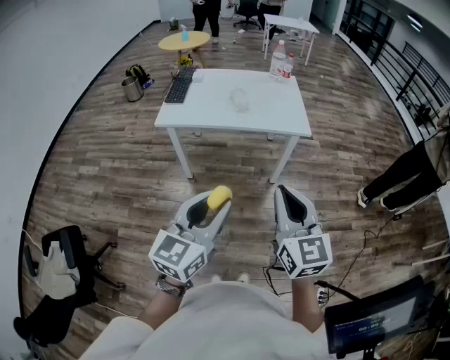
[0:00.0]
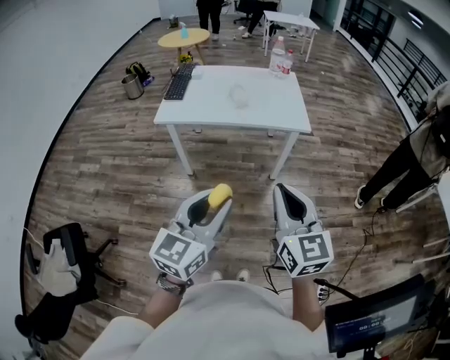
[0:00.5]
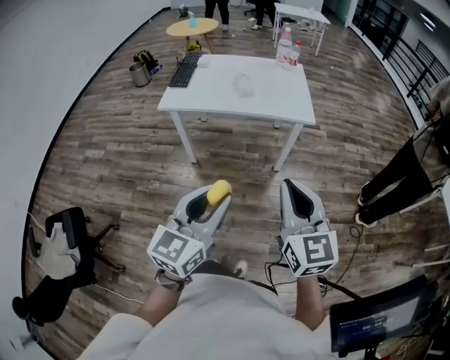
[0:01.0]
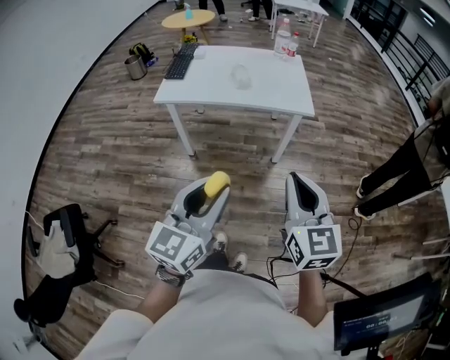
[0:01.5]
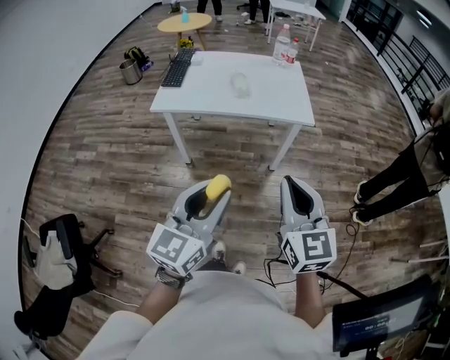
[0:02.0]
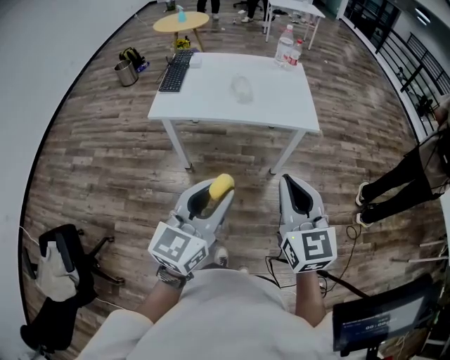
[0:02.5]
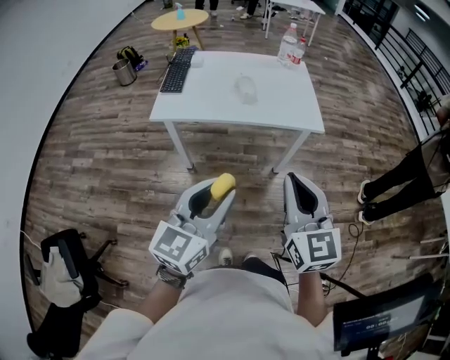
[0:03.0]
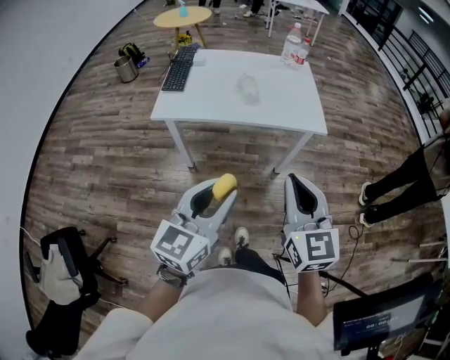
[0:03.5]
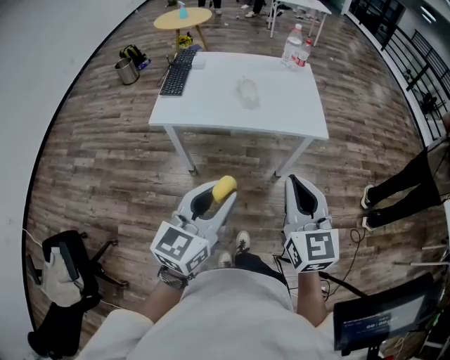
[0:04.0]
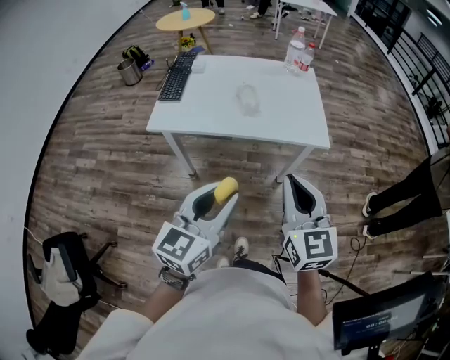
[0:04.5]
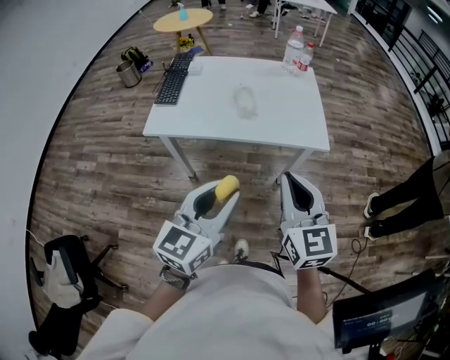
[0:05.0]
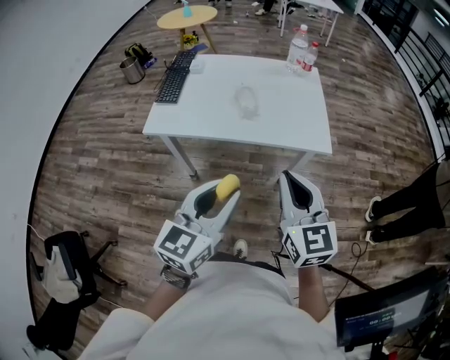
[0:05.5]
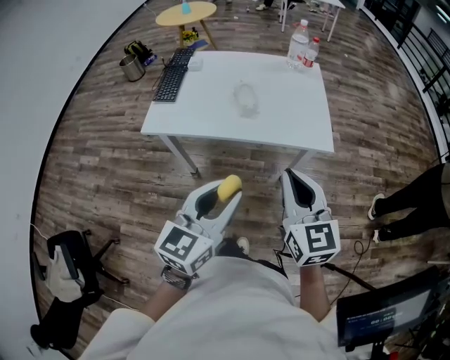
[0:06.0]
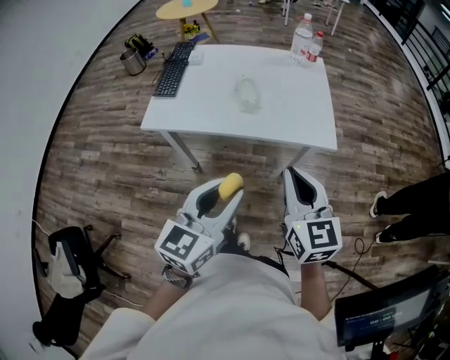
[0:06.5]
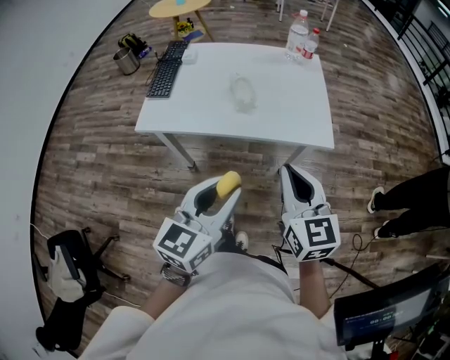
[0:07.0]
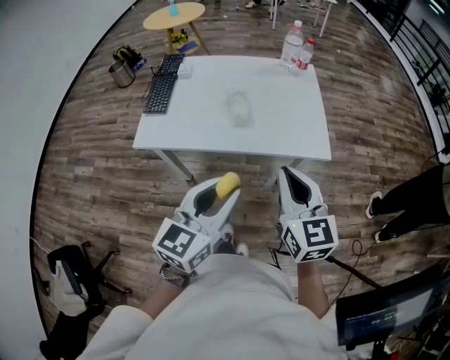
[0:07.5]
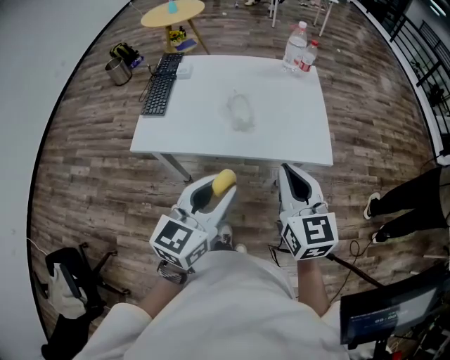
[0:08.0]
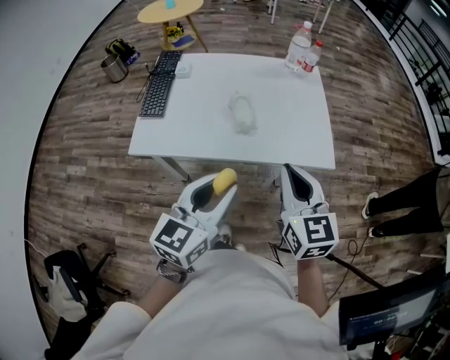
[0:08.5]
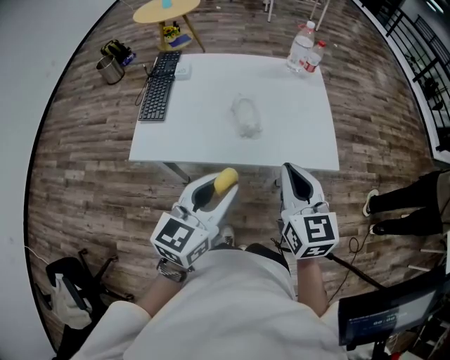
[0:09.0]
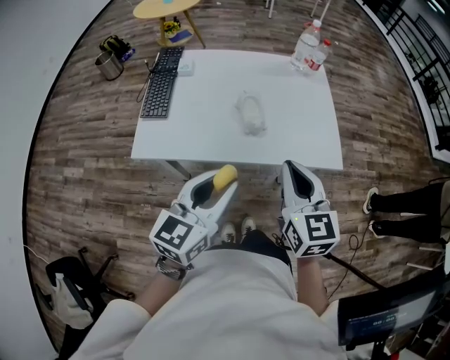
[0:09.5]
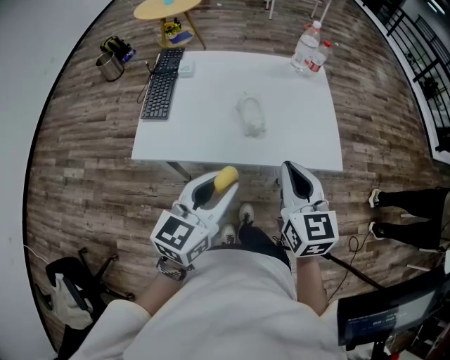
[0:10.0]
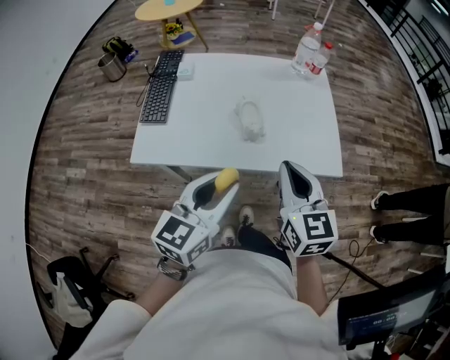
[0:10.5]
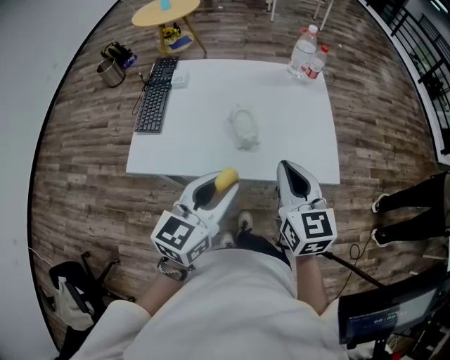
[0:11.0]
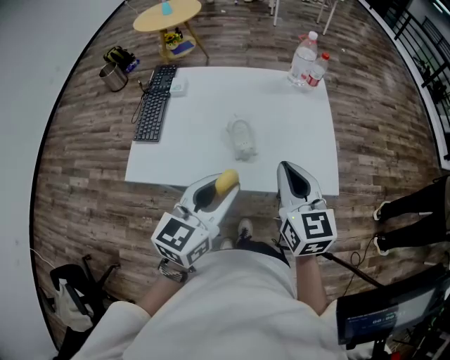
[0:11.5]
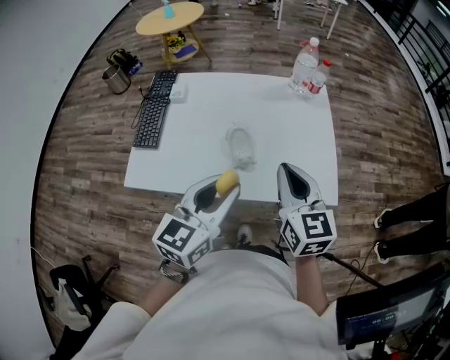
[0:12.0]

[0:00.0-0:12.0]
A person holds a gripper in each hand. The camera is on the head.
0:00.0 to 0:02.0: The grippers stay close to where they were, moving slightly.
0:02.0 to 0:04.0: Both grippers travel together forward, about 10 cm.
0:04.0 to 0:06.0: Both grippers move forward, roughly 10 cm.
0:06.0 to 0:08.0: The two grippers go some 10 cm forward.
0:08.0 to 0:10.0: The right gripper shifts by roughly 5 cm, while the left gripper travels to the left by some 5 cm.
0:10.0 to 0:12.0: Both grippers move forward, about 10 cm.

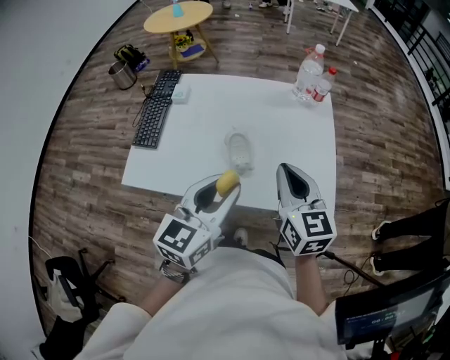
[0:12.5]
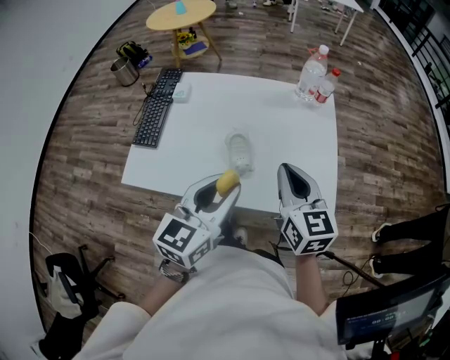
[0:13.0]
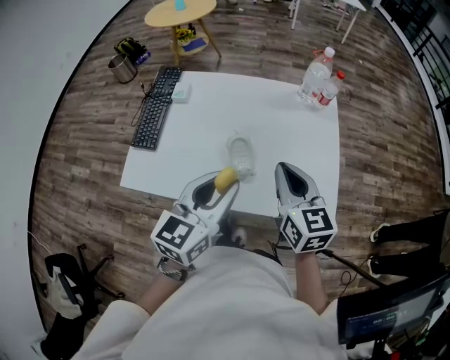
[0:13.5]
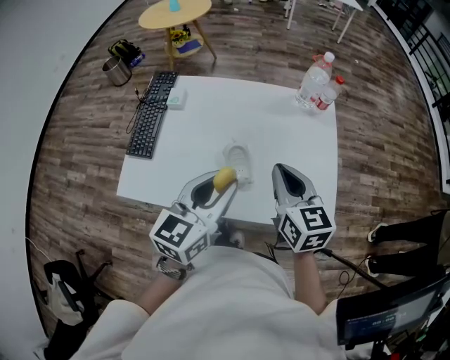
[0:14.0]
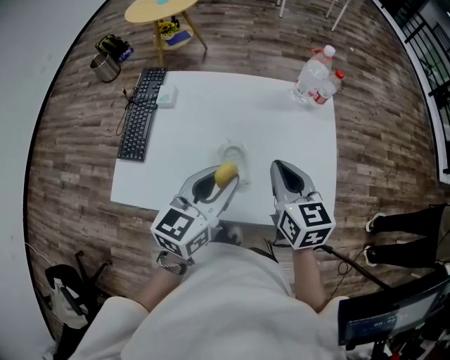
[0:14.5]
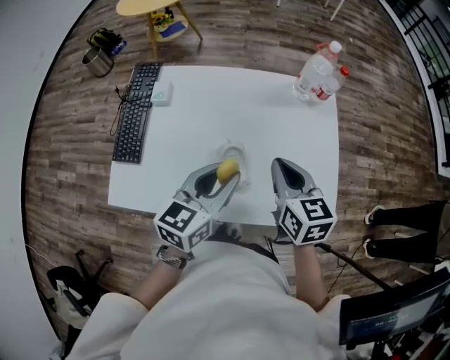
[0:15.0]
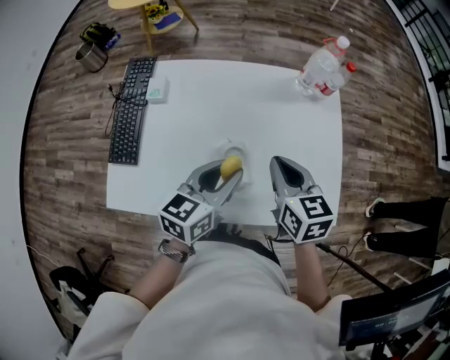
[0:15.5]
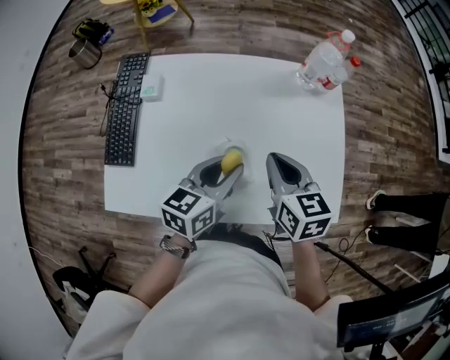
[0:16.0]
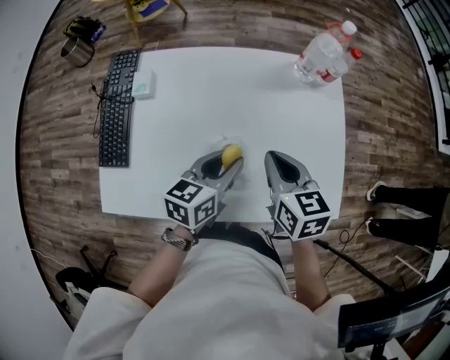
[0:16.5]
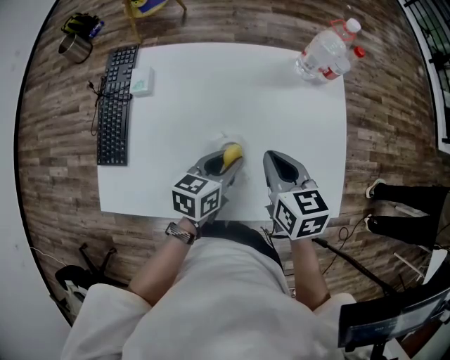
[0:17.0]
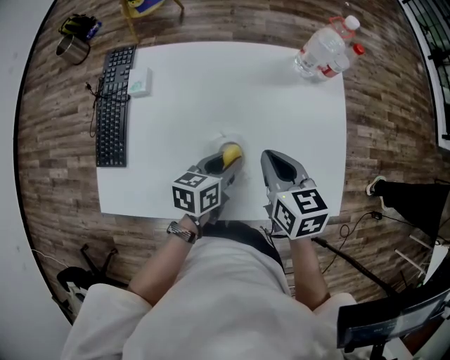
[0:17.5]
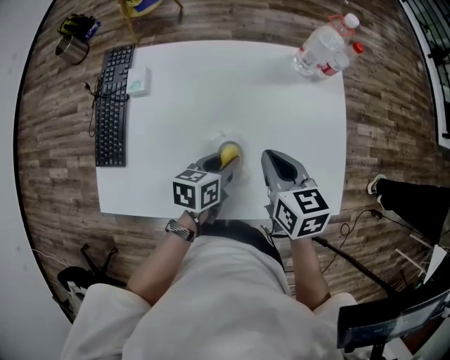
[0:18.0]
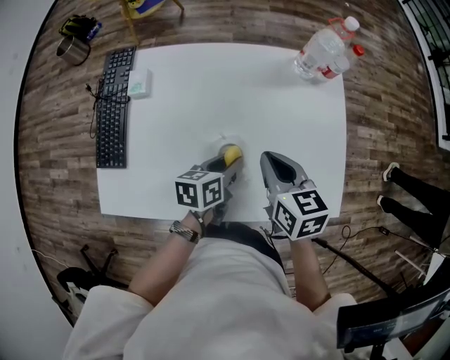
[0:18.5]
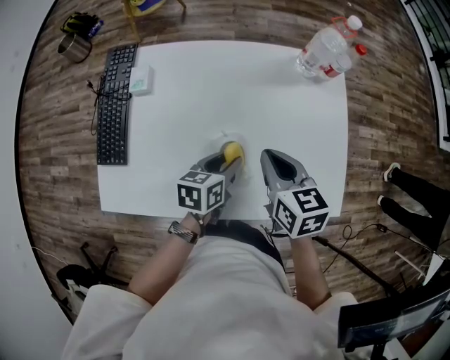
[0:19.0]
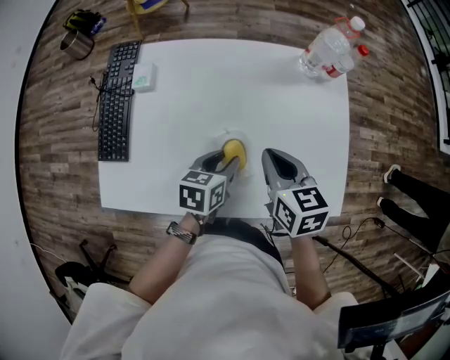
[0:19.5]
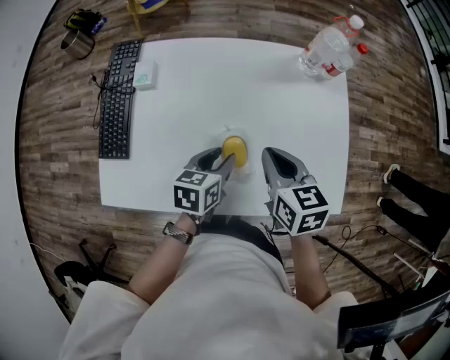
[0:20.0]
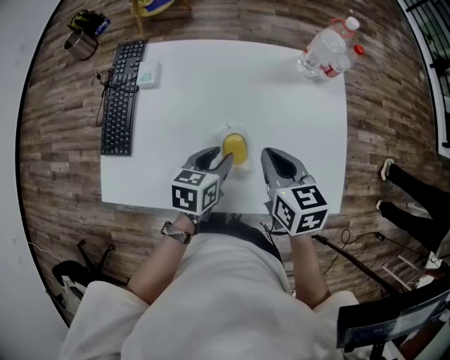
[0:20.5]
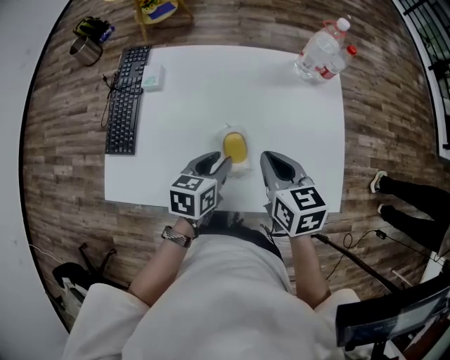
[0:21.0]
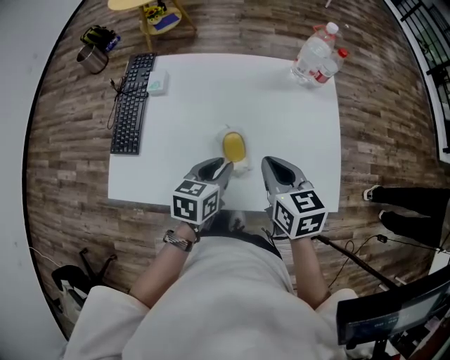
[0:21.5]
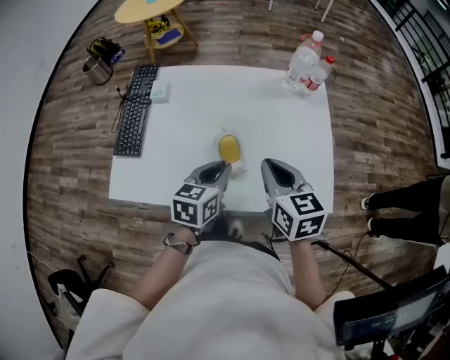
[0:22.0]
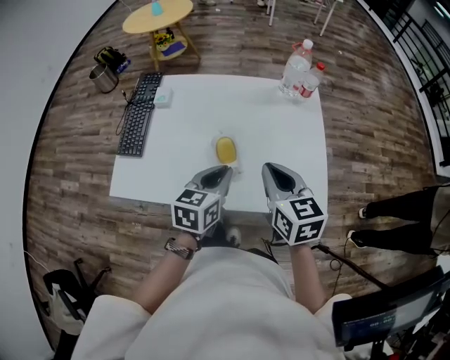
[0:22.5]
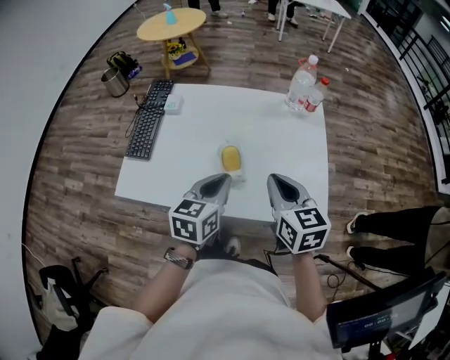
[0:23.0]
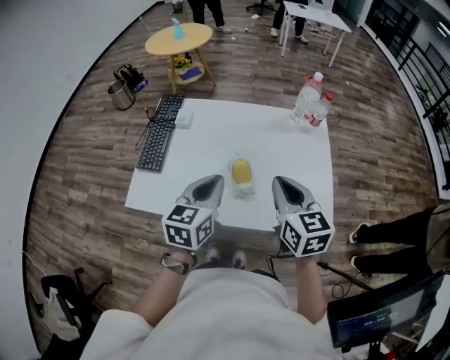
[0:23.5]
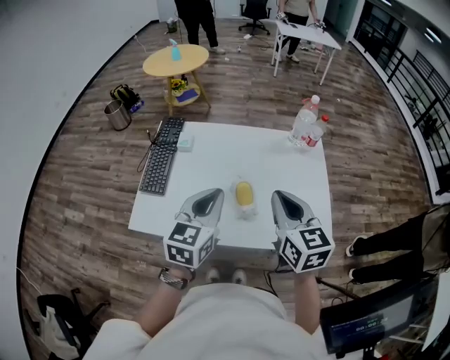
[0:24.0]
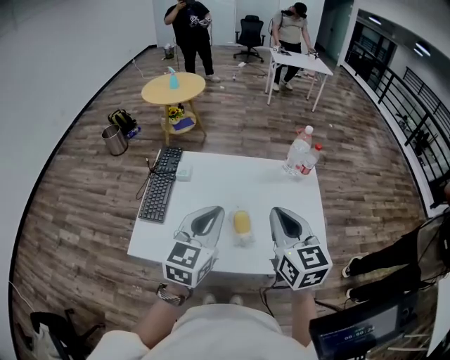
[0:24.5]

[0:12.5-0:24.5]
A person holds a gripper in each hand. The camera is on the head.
0:12.5 to 0:14.5: Both grippers move forward, approximately 10 cm.
0:14.5 to 0:16.5: The right gripper travels downward by roughly 5 cm. The left gripper travels downward and forward by approximately 15 cm, and swivels roughly 20 degrees.
0:16.5 to 0:18.5: The left gripper goes roughly 5 cm downward, and rotates roughly 20 degrees.
0:18.5 to 0:20.5: The grippers move only a little.
0:20.5 to 0:22.5: The two grippers go some 10 cm upward and backward. The left gripper closes its fingers.
0:22.5 to 0:24.5: The left gripper moves upward and to the left, about 15 cm, and rotates some 30 degrees; the right gripper shifts roughly 10 cm upward.

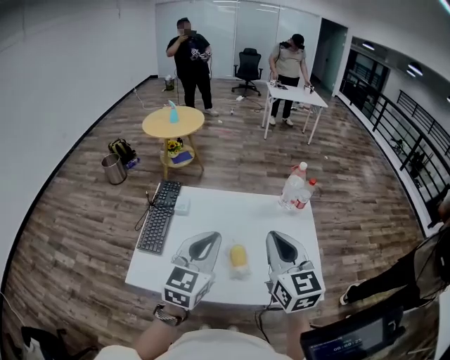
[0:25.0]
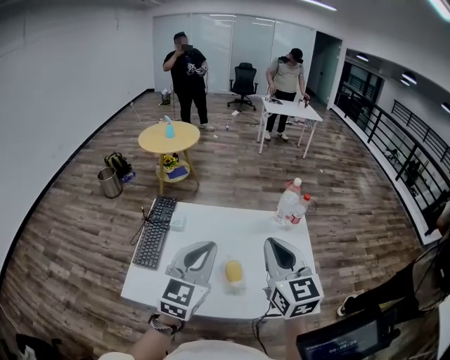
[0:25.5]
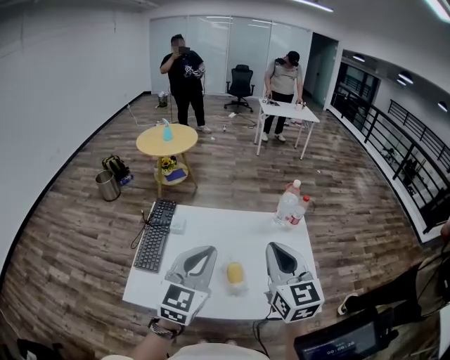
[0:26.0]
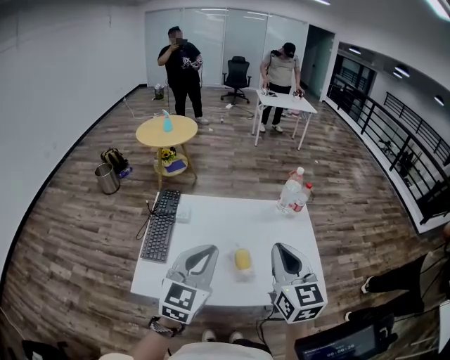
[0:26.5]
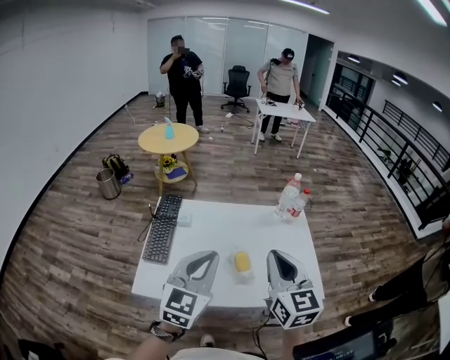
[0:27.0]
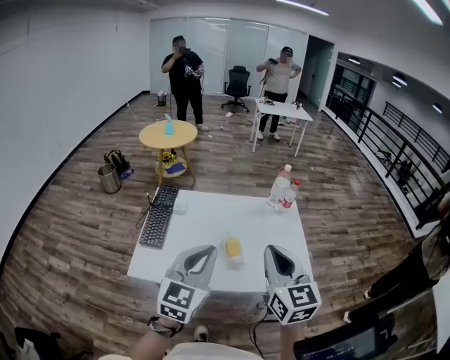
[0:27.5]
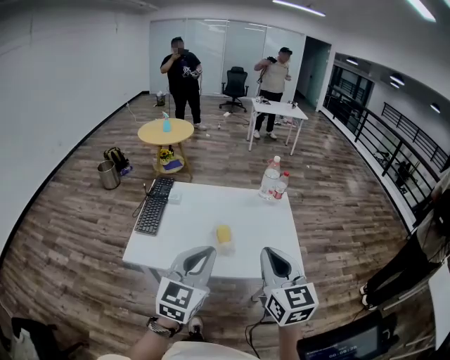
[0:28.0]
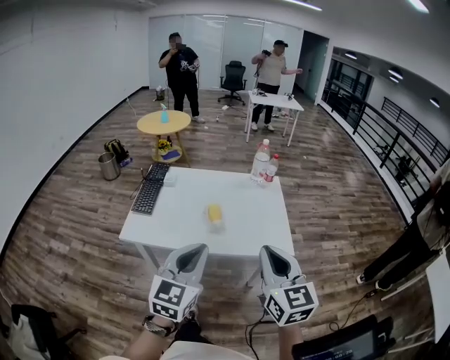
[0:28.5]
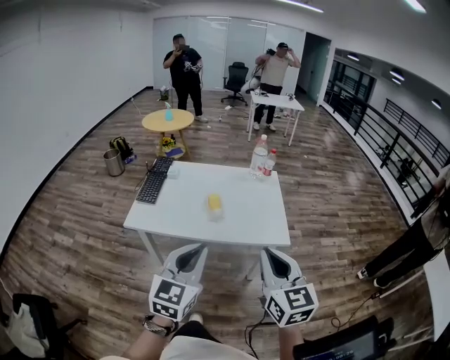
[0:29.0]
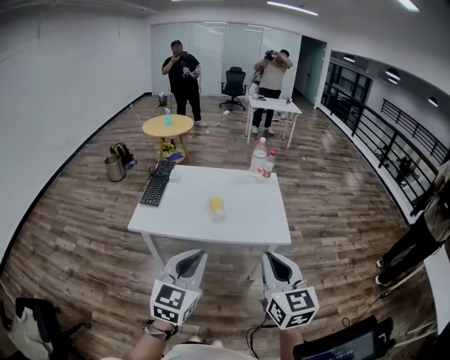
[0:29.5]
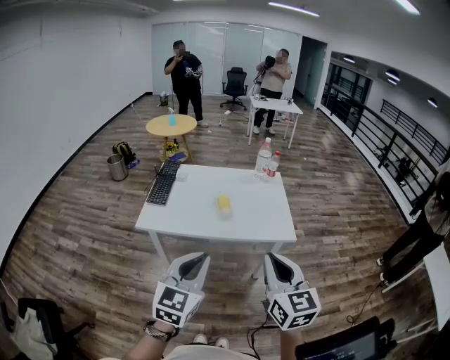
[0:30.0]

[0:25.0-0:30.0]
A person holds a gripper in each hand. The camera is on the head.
0:25.0 to 0:27.5: The two grippers go some 10 cm backward.
0:27.5 to 0:30.0: The grippers both shift backward by roughly 25 cm.
